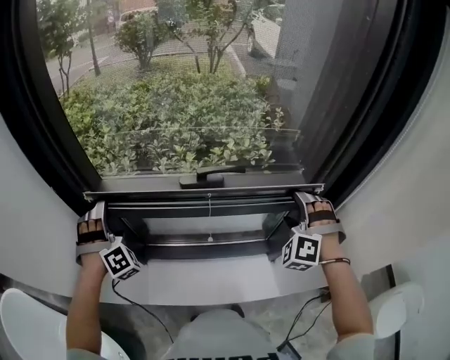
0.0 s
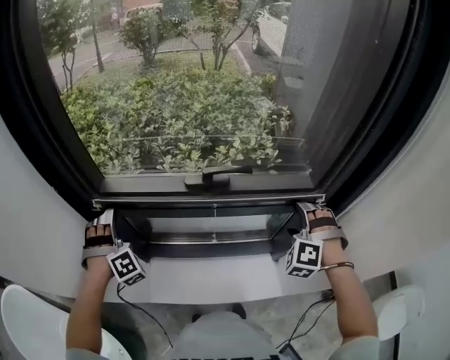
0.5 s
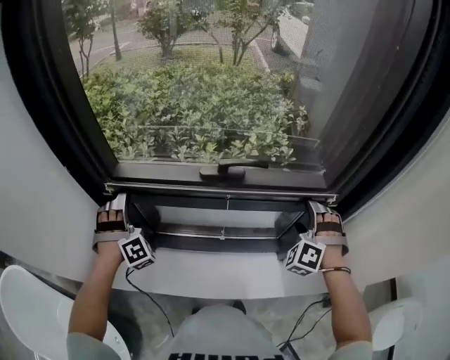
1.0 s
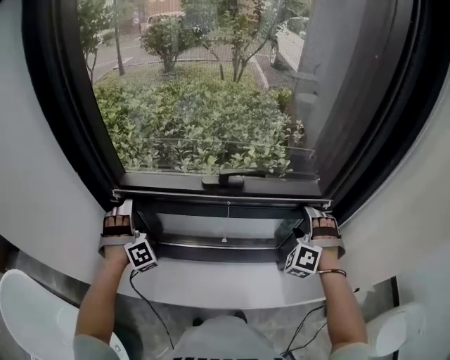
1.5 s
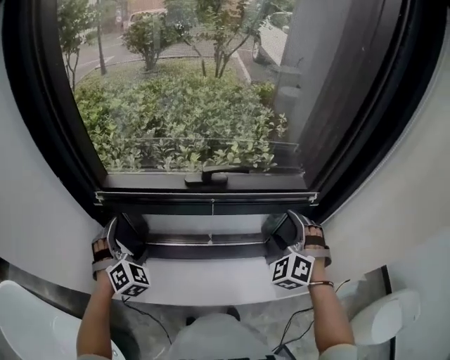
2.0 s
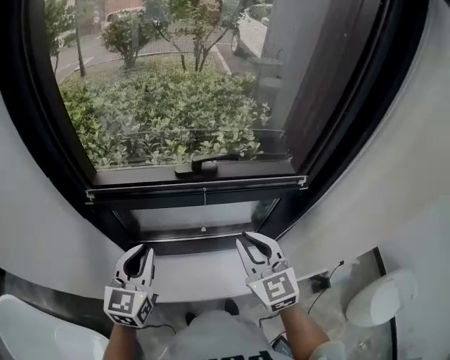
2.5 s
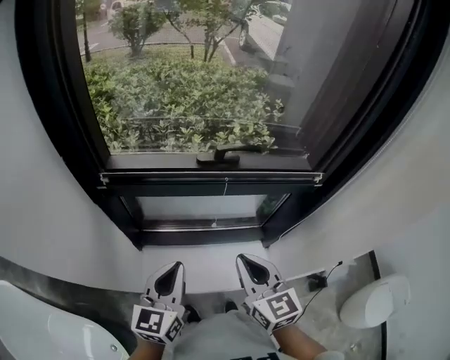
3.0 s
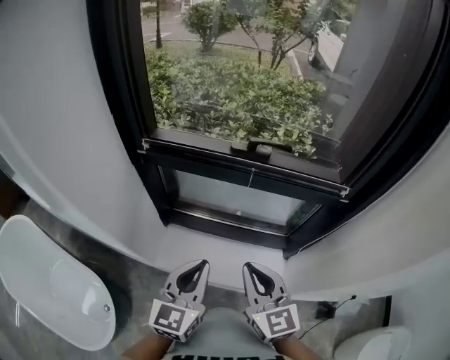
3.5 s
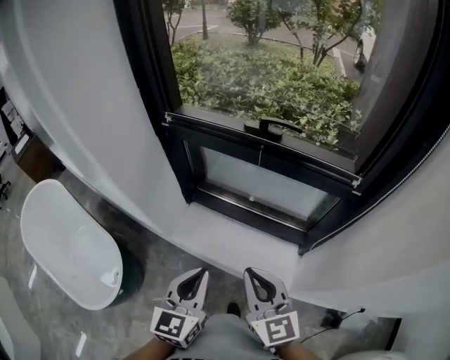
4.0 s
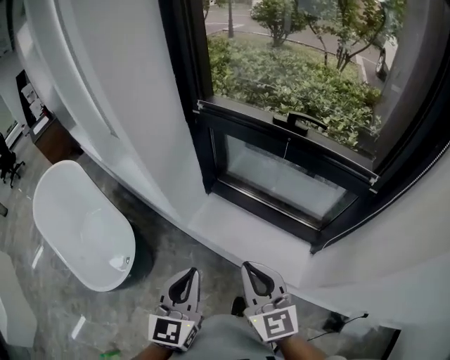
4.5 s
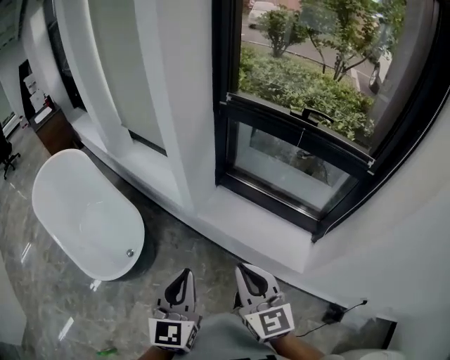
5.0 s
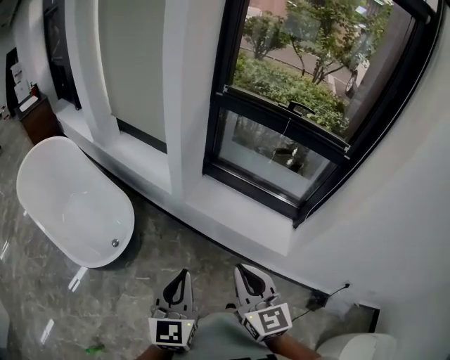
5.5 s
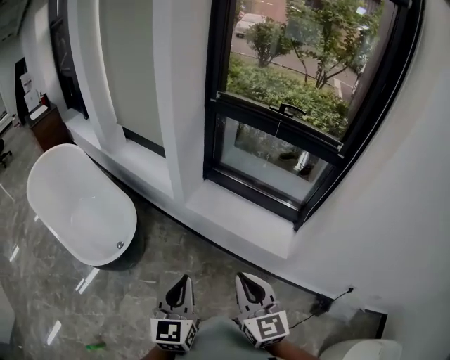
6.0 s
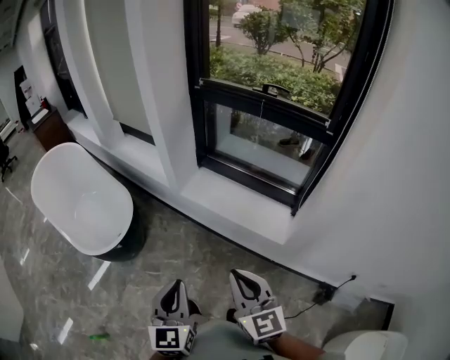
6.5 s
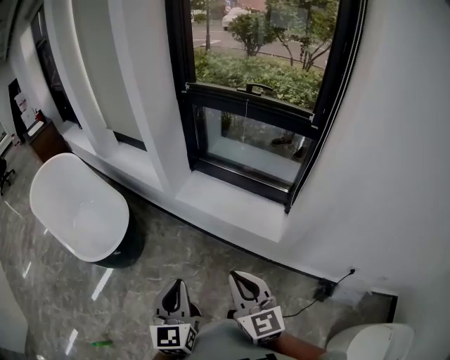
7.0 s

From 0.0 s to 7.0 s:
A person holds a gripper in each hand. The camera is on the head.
From 0.0 s to 2.0 s: The left gripper shifts some 5 cm backward, and turns by approximately 30 degrees; the right gripper moves roughly 5 cm.
From 2.0 s to 3.5 s: The left gripper travels backward and to the right by about 25 cm, twists approximately 60 degrees counterclockwise, seen from behind, and closes its fingers. The right gripper travels backward and to the left by roughly 25 cm, turns by roughly 70 degrees, and closes up.
From 3.5 s to 5.0 s: The right gripper ends up roughly 30 cm from where it was, and changes its angle by about 20 degrees. The left gripper ends up some 35 cm from where it was, and changes its angle by approximately 30 degrees.
From 5.0 s to 7.0 s: The grippers both shift backward by about 25 cm.

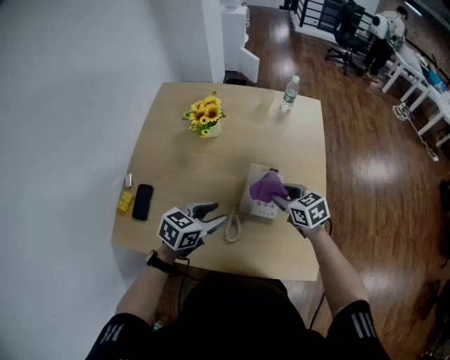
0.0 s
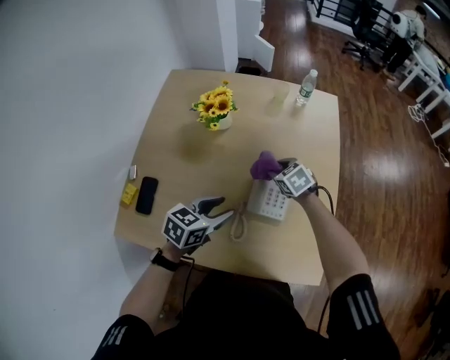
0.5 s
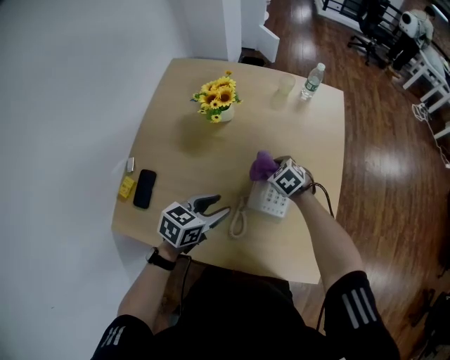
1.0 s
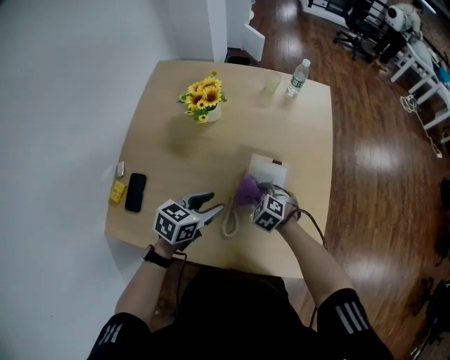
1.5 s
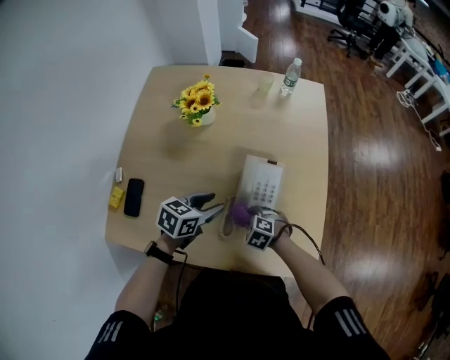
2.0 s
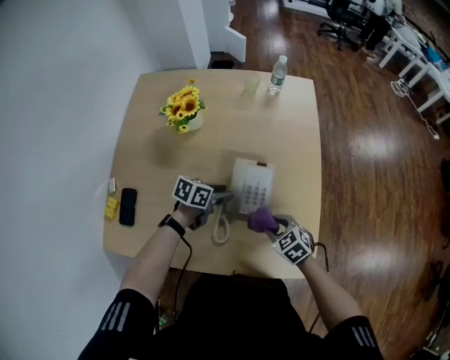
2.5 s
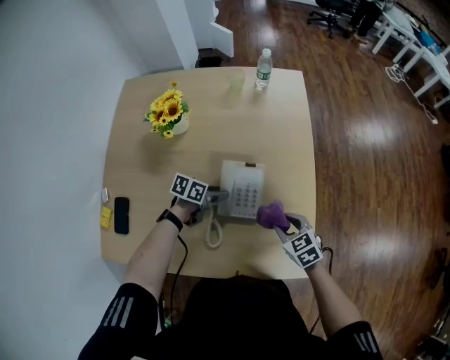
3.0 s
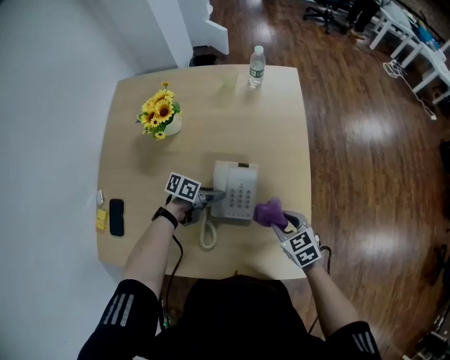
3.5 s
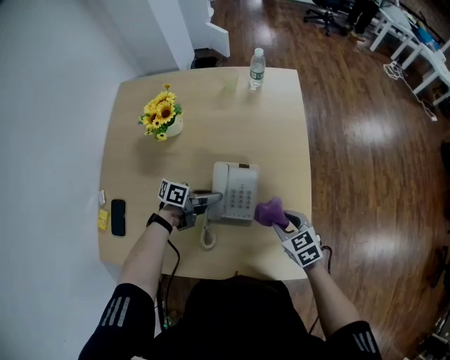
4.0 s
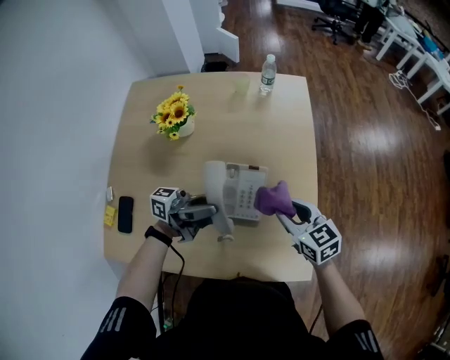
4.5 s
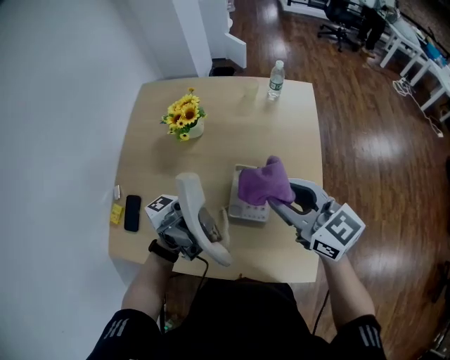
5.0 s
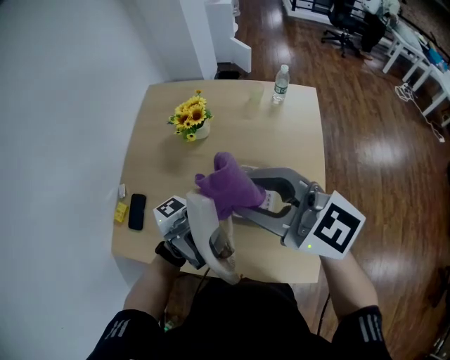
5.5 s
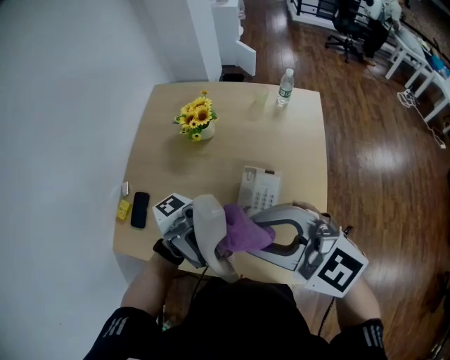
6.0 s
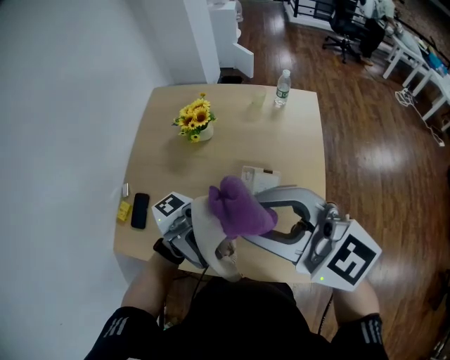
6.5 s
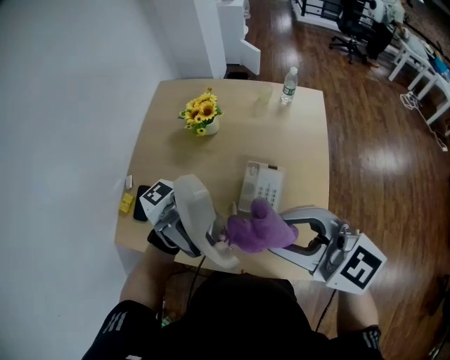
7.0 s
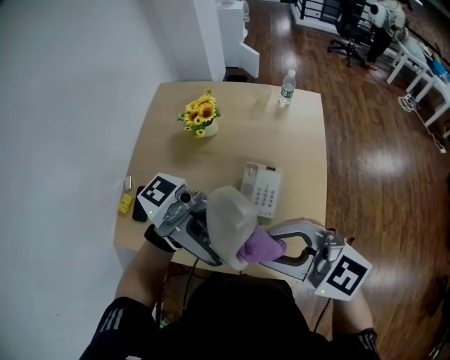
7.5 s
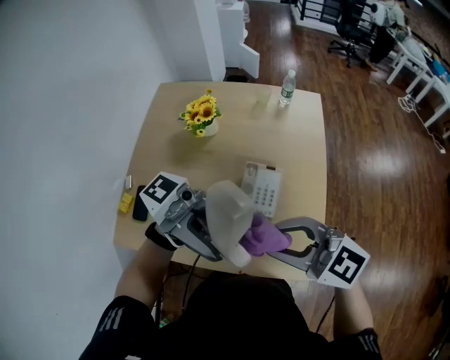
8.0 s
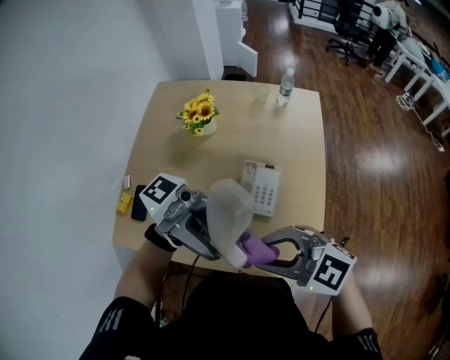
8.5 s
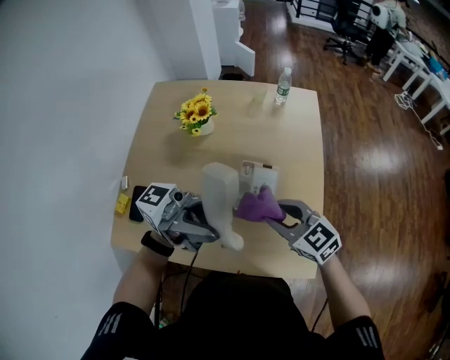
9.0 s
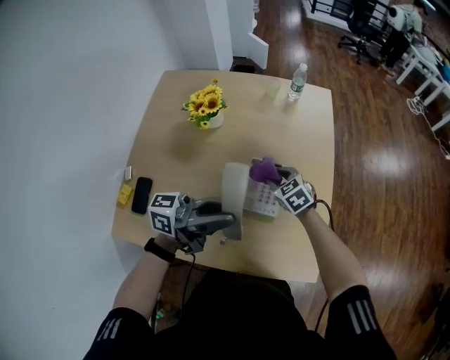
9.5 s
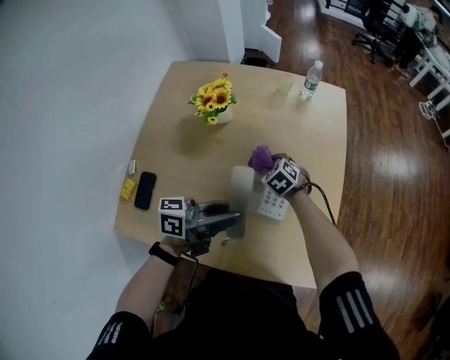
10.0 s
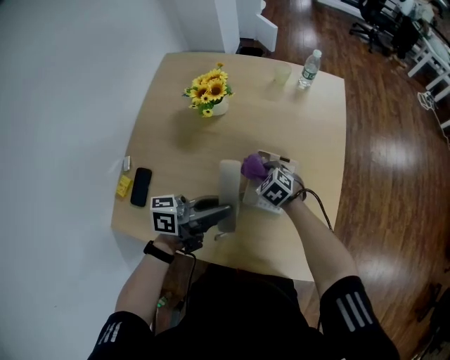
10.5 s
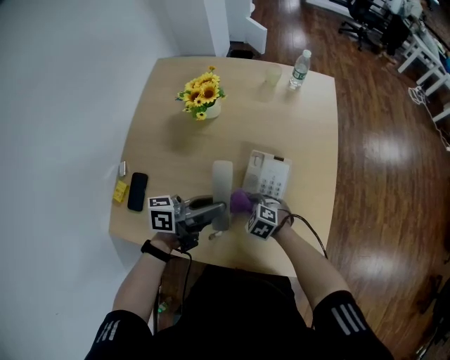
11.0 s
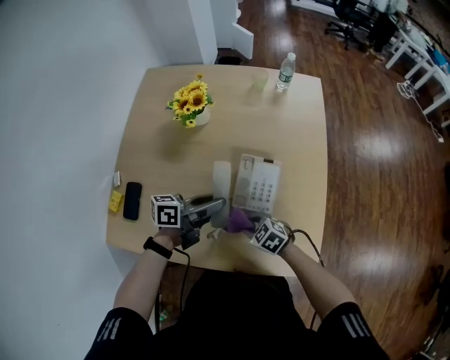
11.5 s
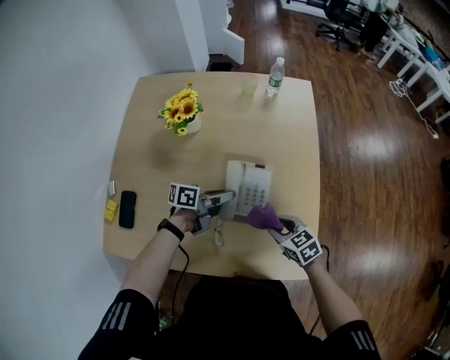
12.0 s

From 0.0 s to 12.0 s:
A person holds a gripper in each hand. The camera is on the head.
From 0.0 s to 2.0 s: The left gripper travels downward by about 5 cm; the right gripper travels downward and backward by some 20 cm, and rotates about 50 degrees.
From 2.0 s to 4.0 s: The right gripper moves some 20 cm, and changes its angle by approximately 50 degrees; the left gripper moves approximately 15 cm, swivels some 40 degrees, and closes.
From 4.0 s to 6.0 s: Both grippers travel together upward, roughly 35 cm. The right gripper tips its fingers upward by some 30 degrees. Meanwhile the left gripper tilts its fingers roughly 70 degrees upward.
From 6.0 s to 8.0 s: The right gripper moves approximately 5 cm. The left gripper heads upward, covering approximately 5 cm.
From 8.0 s to 10.0 s: Both grippers move downward, approximately 30 cm. The left gripper changes its angle by some 60 degrees; the right gripper points its fingers about 40 degrees further downward.
From 10.0 s to 12.0 s: The left gripper is displaced downward by some 15 cm, and changes its angle by about 20 degrees. The right gripper reaches about 5 cm downward, then returns, and rotates about 30 degrees.

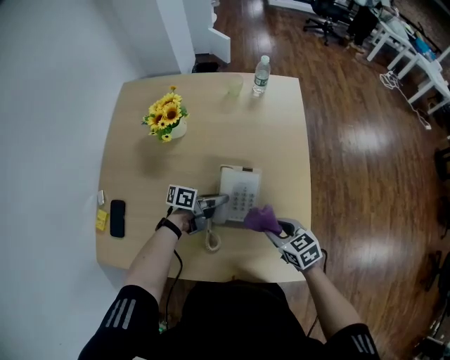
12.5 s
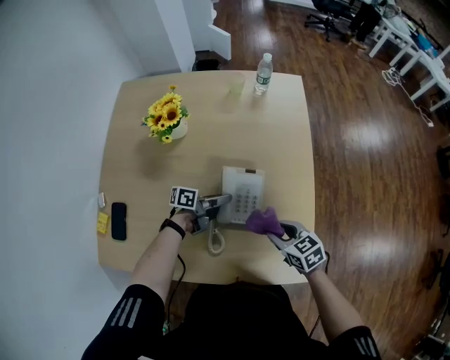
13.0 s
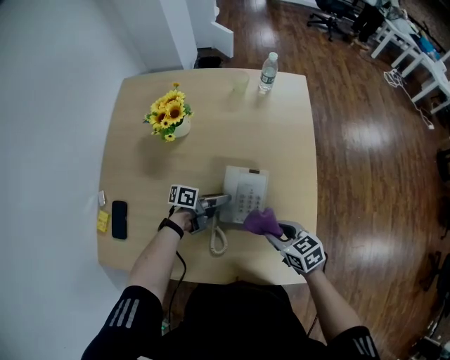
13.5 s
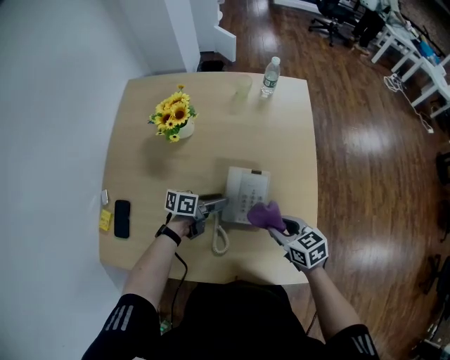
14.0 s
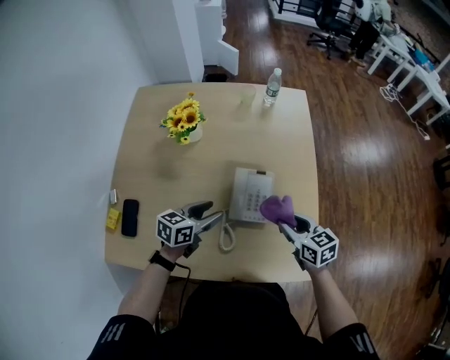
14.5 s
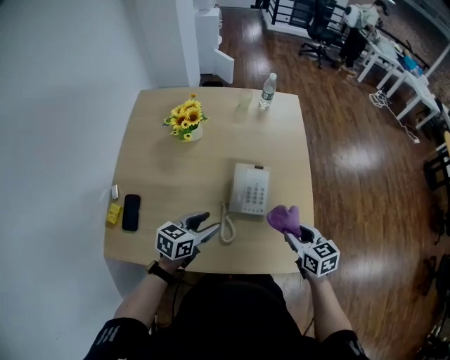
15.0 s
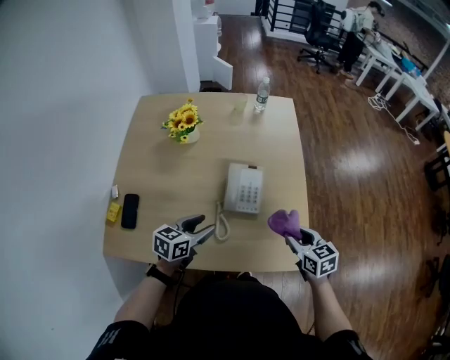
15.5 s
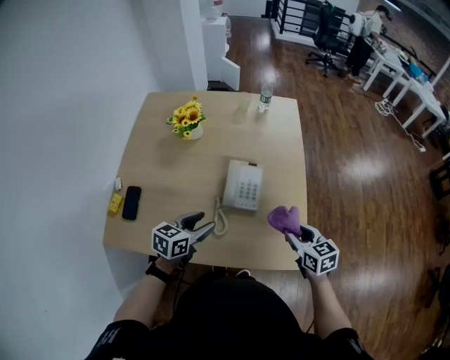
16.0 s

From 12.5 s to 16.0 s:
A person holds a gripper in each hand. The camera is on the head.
From 12.5 s to 14.5 s: The right gripper is displaced upward by roughly 5 cm. The left gripper goes approximately 15 cm upward, to the left and backward, changes its angle by some 40 degrees, and opens up.
From 14.5 s to 16.0 s: The left gripper is displaced backward by about 10 cm. Meanwhile the right gripper is displaced backward and to the right by approximately 10 cm.

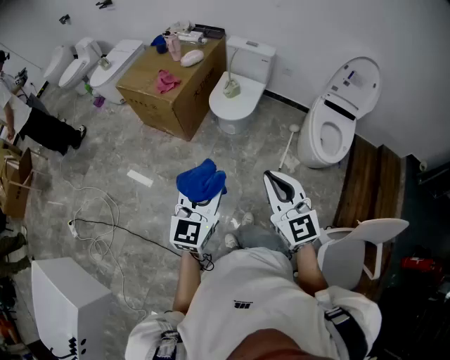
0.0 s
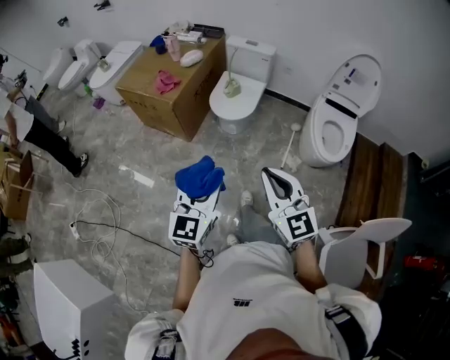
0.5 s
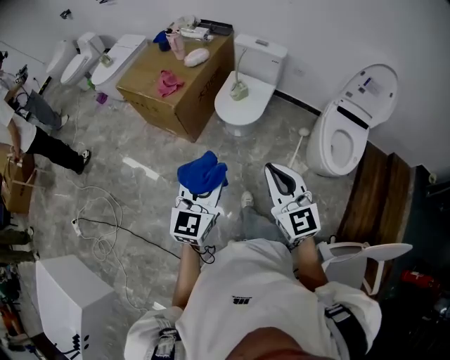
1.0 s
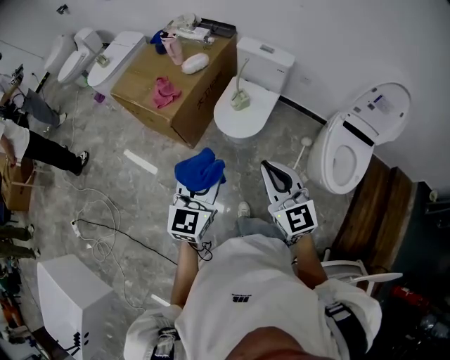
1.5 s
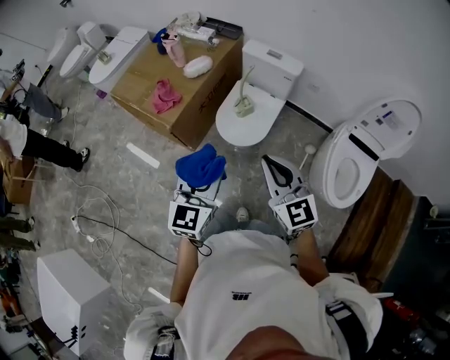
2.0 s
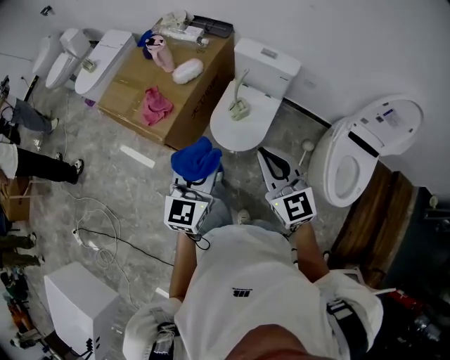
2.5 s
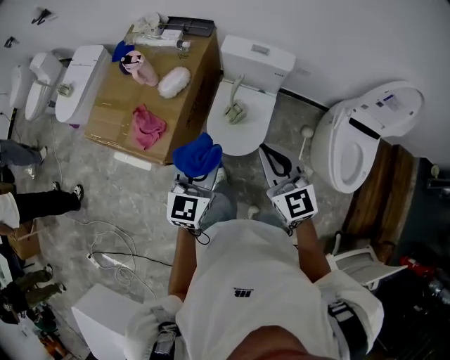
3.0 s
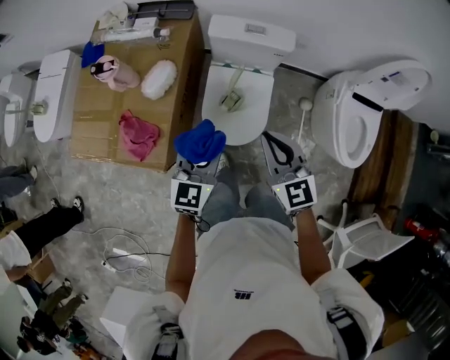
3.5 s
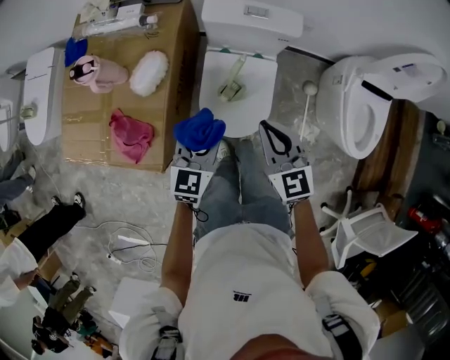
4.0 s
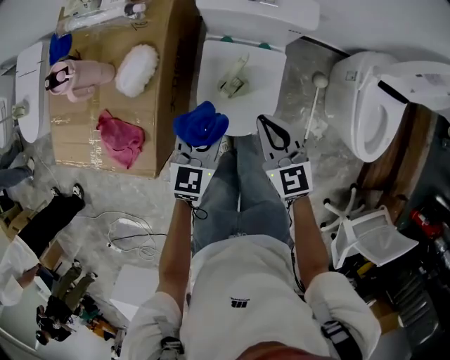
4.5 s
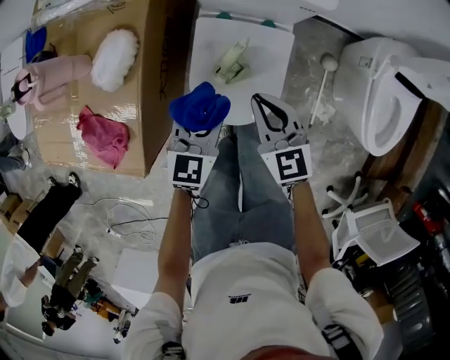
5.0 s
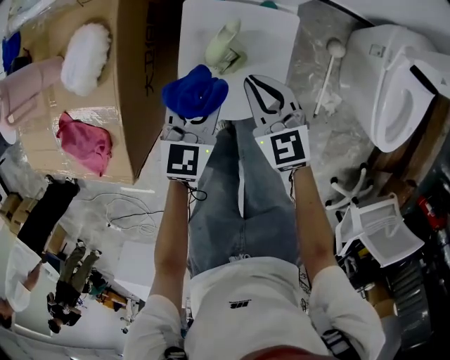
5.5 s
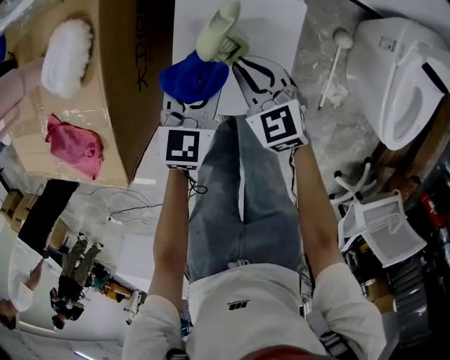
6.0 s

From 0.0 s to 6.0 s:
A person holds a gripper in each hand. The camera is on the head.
From 0.0 s to 2.0 s: The grippers both shift forward by about 40 cm.
From 2.0 s to 4.0 s: The right gripper shifts by about 40 cm, and turns by some 30 degrees, while the left gripper changes place by about 40 cm, and turns by some 30 degrees.
From 4.0 s to 6.0 s: Both grippers move downward, approximately 30 cm.
